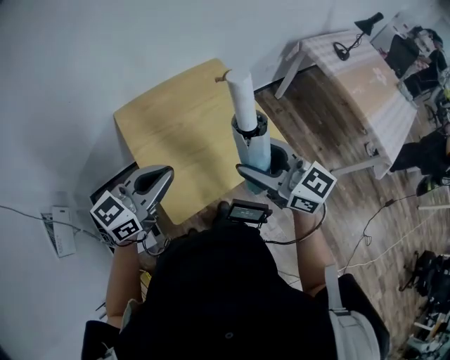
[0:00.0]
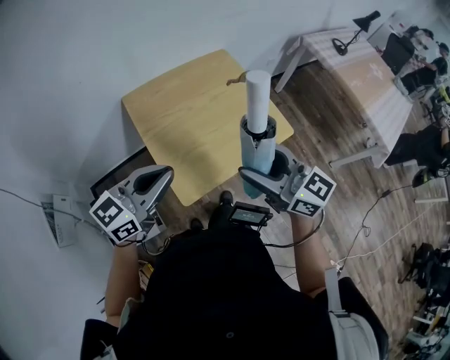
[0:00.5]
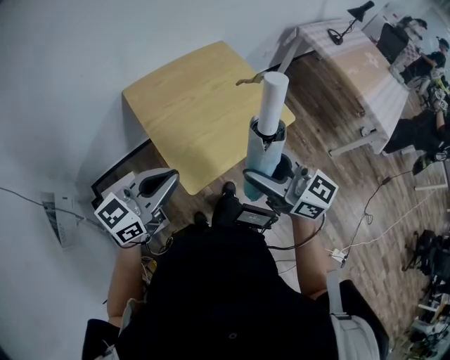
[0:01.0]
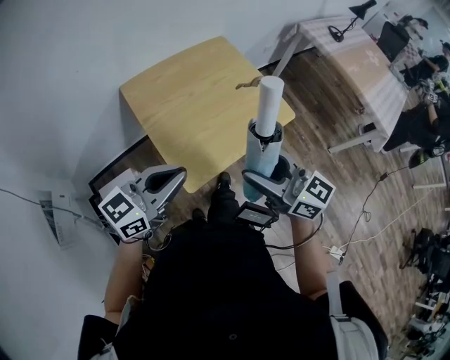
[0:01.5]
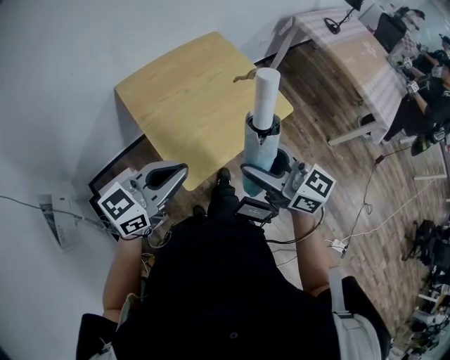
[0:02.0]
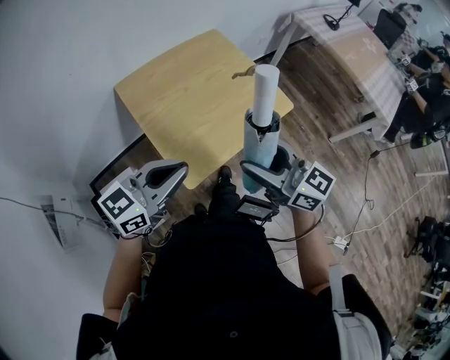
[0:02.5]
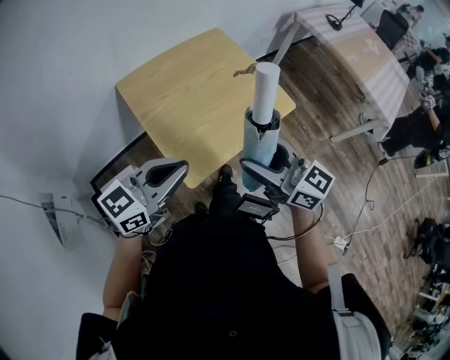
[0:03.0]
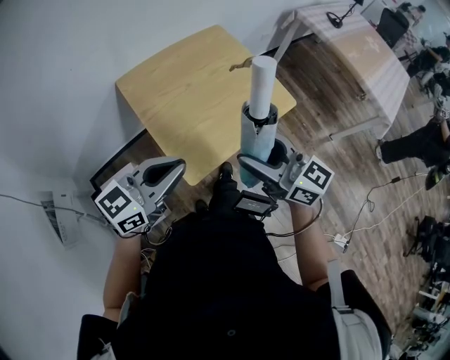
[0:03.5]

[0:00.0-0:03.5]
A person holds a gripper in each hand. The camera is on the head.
0:00.0 to 0:02.0: The right gripper goes some 15 cm backward and to the left. The left gripper moves backward, some 10 cm.
0:02.0 to 0:03.5: Both grippers stay about where they are.

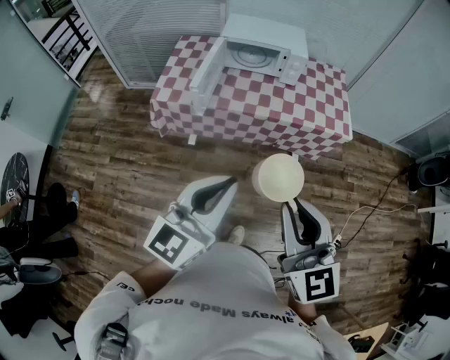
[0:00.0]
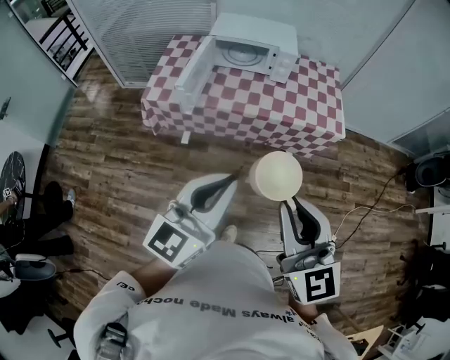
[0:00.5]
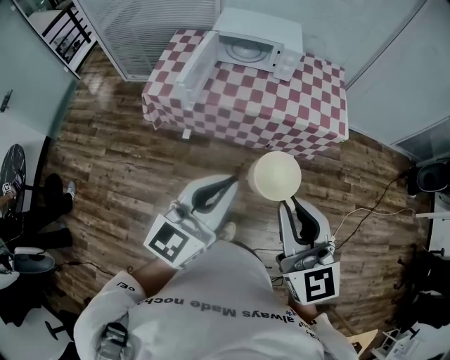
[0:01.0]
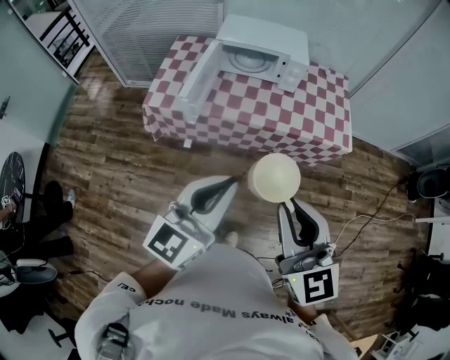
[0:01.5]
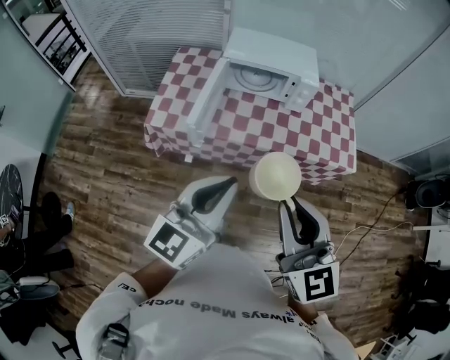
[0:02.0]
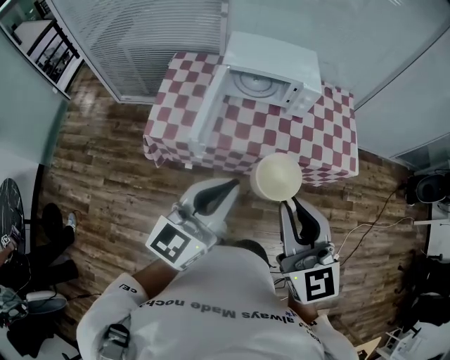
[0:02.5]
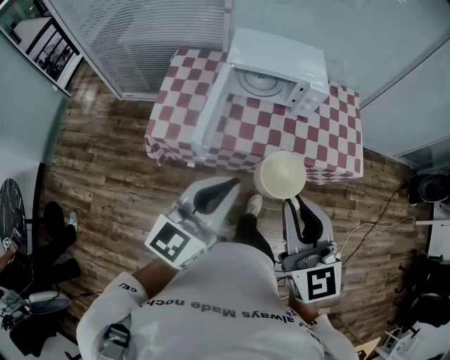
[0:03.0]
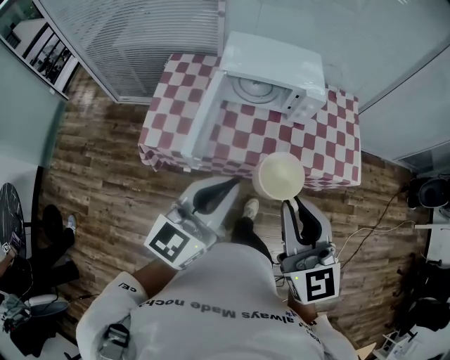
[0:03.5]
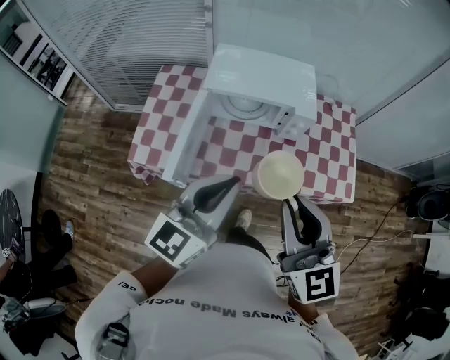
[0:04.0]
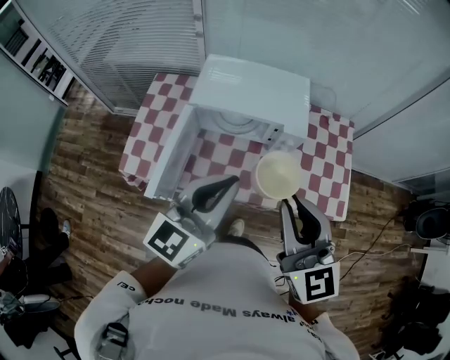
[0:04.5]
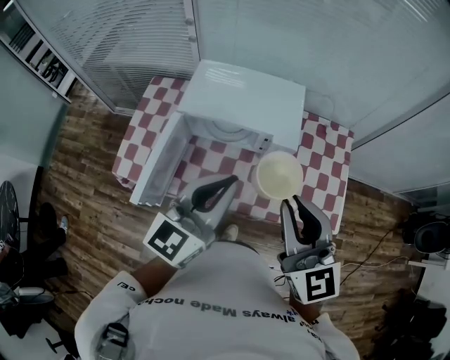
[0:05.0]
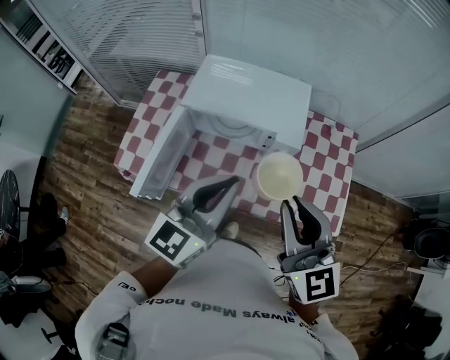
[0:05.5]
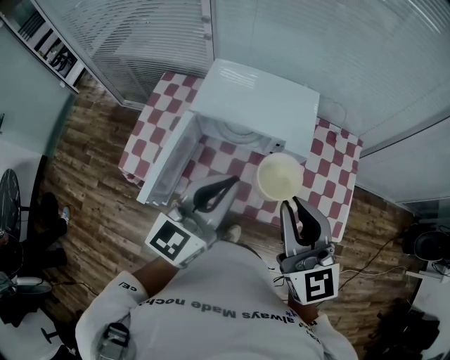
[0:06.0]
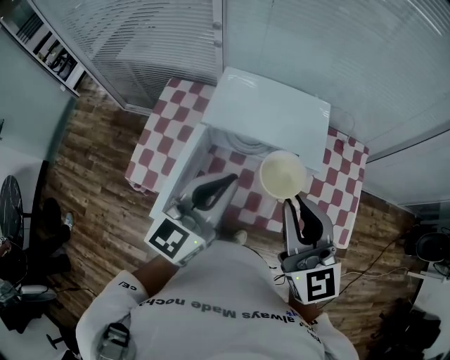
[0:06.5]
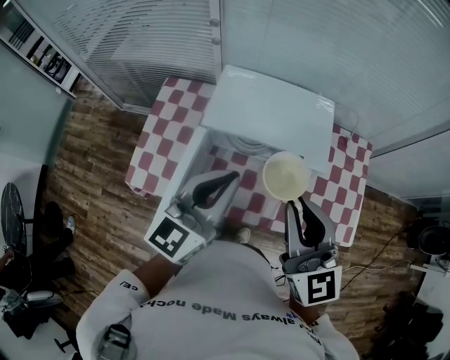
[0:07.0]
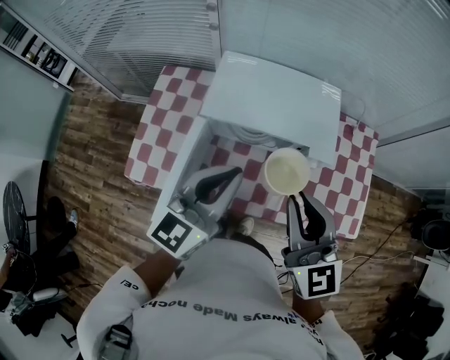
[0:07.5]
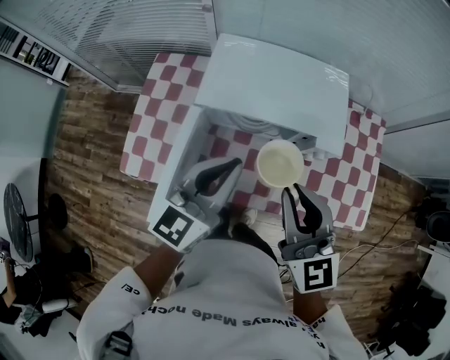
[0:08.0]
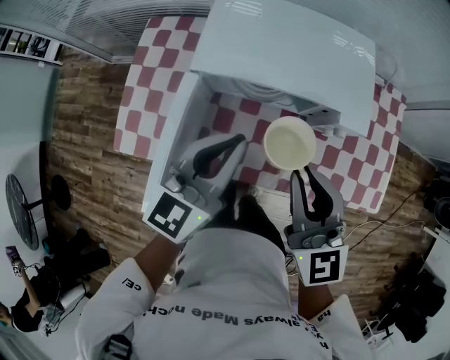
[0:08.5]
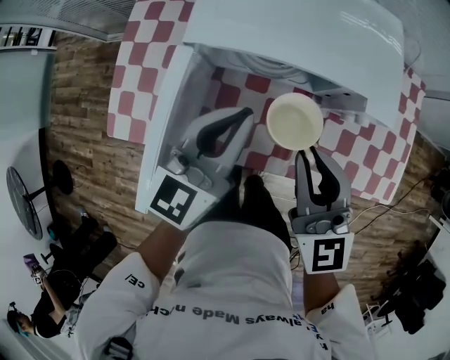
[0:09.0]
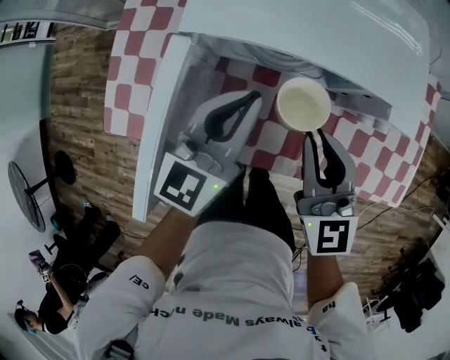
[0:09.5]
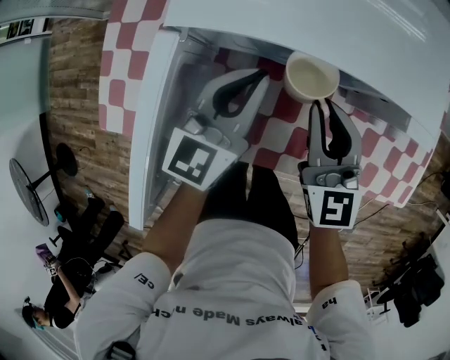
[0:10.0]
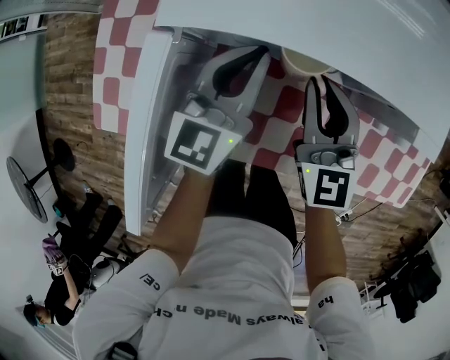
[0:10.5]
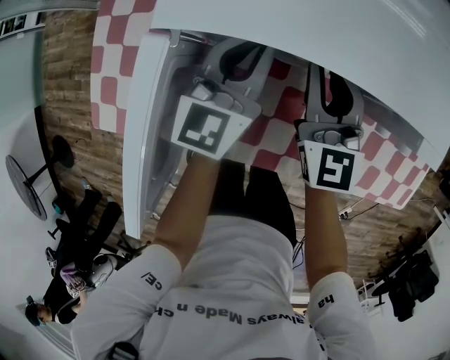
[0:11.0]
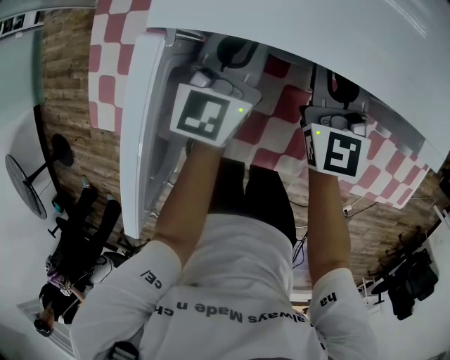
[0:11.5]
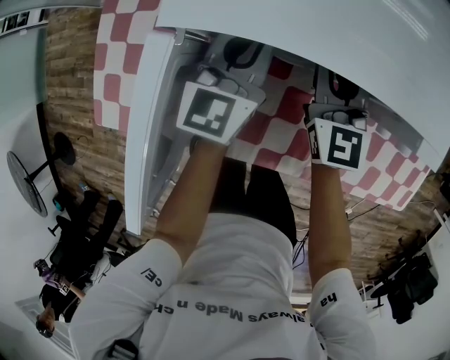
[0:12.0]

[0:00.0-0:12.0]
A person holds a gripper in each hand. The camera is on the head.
0:00.0 to 0:02.0: The grippers both shift forward by roughly 20 cm.
0:02.0 to 0:04.0: Both grippers move forward, roughly 25 cm.
0:04.0 to 0:06.0: Both grippers travel together forward and to the right, approximately 15 cm.
0:06.0 to 0:08.0: The right gripper goes about 15 cm downward, forward and to the left; the left gripper moves forward, downward and to the left, roughly 15 cm.
0:08.0 to 0:10.0: Both grippers move downward and forward, about 30 cm.
0:10.0 to 0:12.0: Both grippers travel together forward, roughly 10 cm.

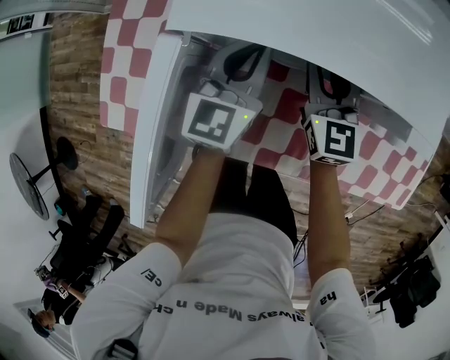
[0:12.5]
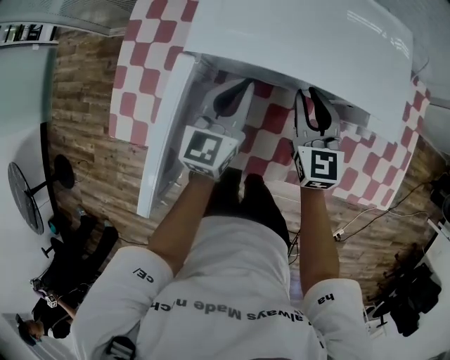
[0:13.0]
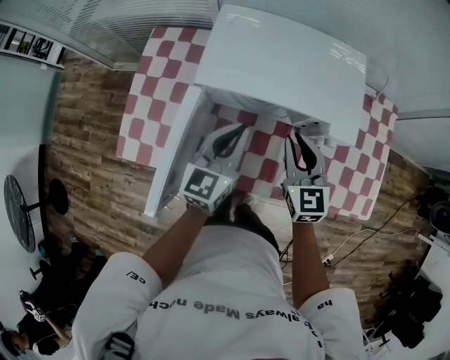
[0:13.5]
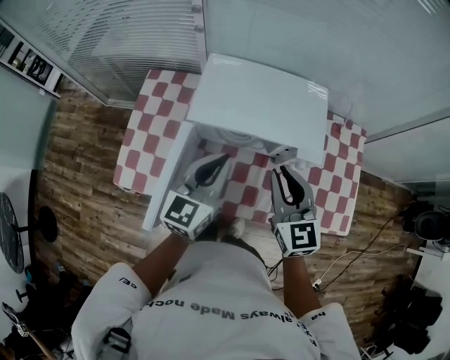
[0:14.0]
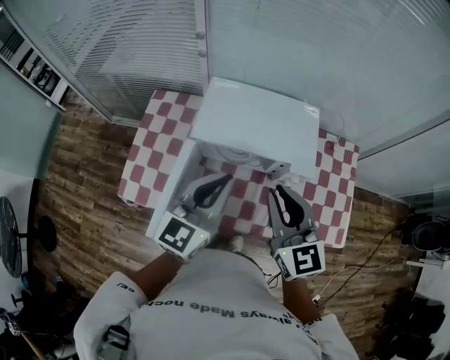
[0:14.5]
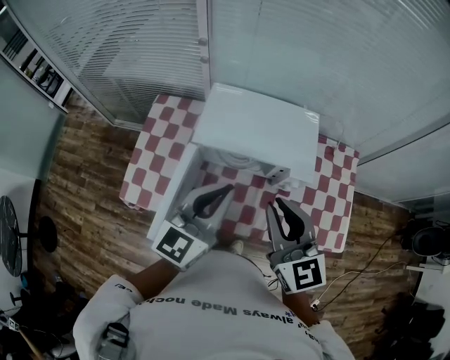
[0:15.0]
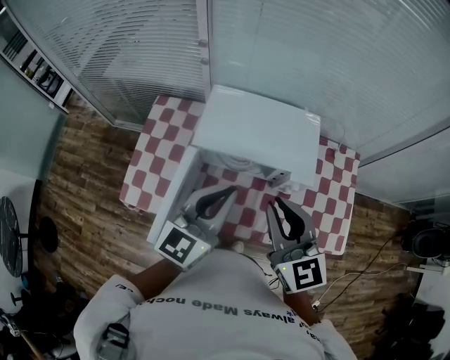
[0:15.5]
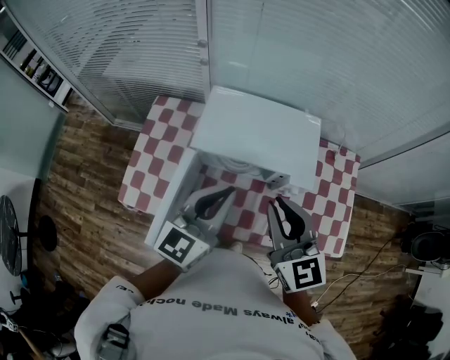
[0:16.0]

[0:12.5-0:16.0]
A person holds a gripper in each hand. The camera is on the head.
0:12.5 to 0:14.5: Both grippers move upward and backward, some 40 cm.
0:14.5 to 0:16.0: The grippers move only a little.

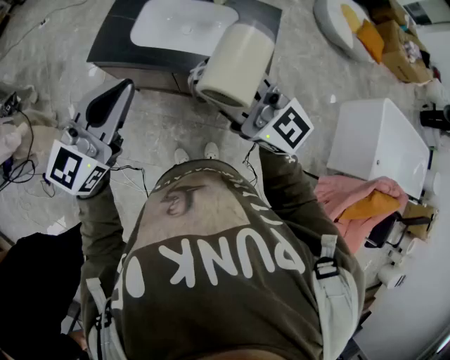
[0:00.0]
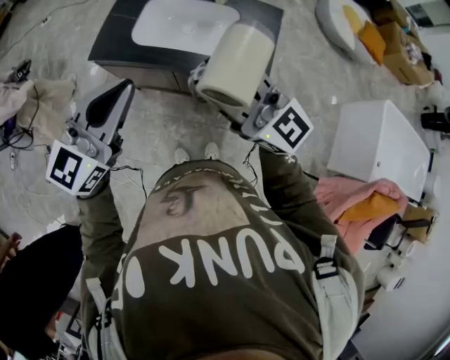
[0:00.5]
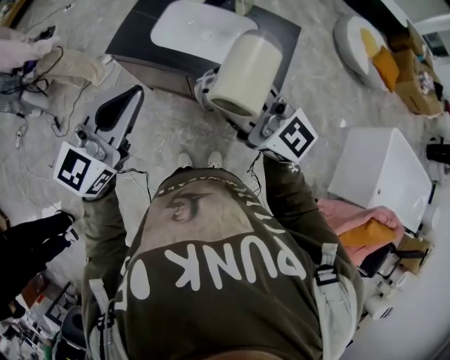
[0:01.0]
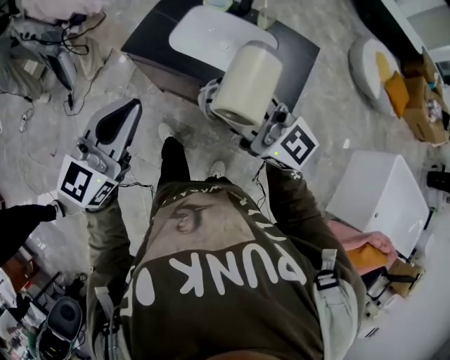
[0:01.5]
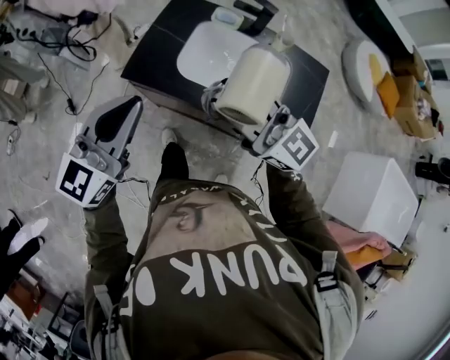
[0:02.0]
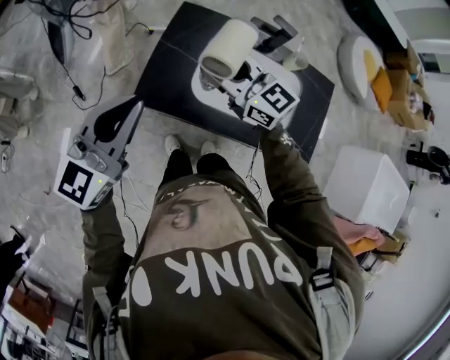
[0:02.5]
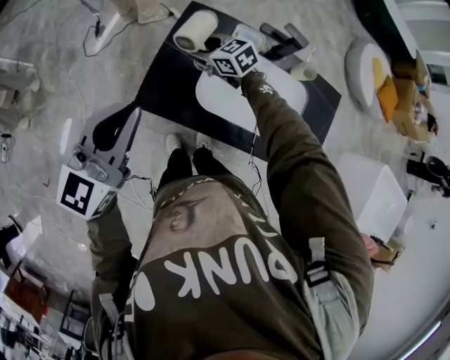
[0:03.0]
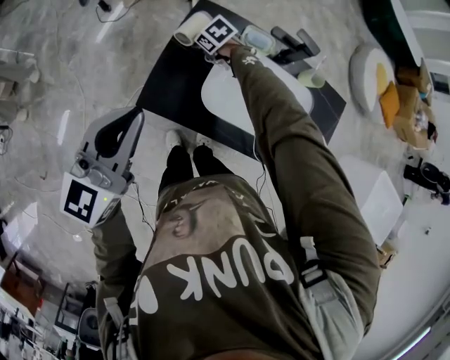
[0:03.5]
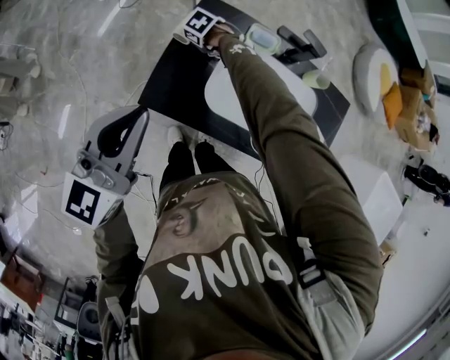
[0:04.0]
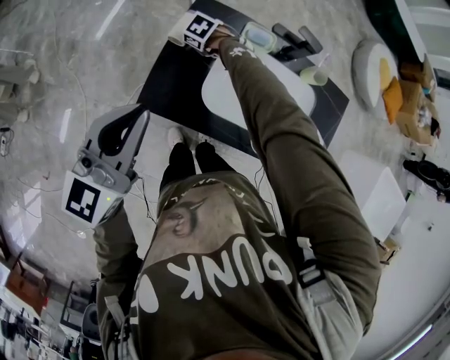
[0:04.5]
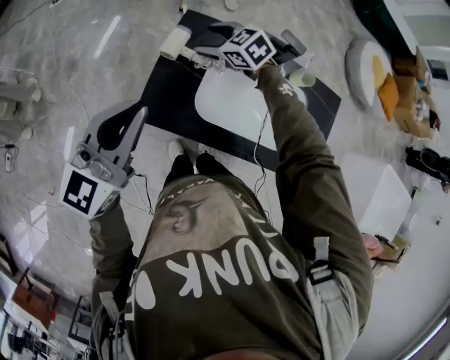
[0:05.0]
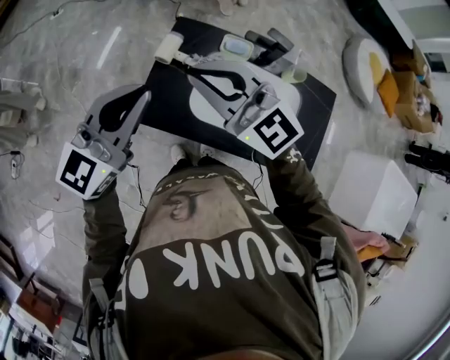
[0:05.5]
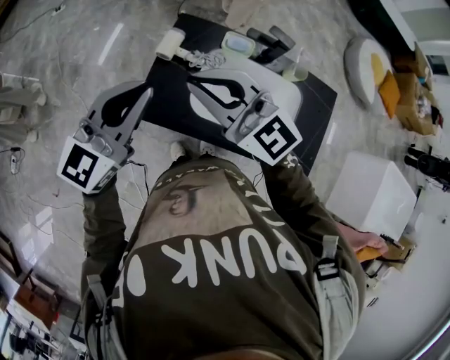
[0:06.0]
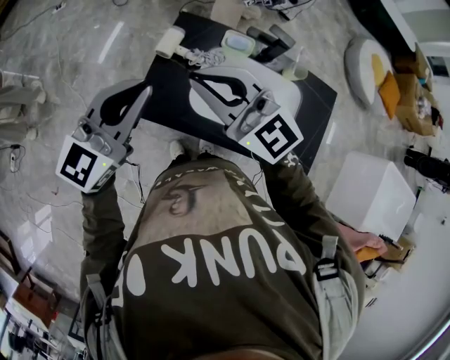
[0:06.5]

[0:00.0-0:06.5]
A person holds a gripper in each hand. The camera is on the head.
0:00.0 to 0:02.0: Both grippers travel together forward and to the left, roughly 25 cm.
0:02.0 to 0:04.5: The left gripper ends up some 20 cm from where it was; the right gripper moves about 60 cm, points its fingers about 80 degrees further downward, and opens.
0:04.5 to 0:06.5: The right gripper heads upward and backward, covering some 50 cm, tips its fingers upward by roughly 80 degrees, and closes its fingers, while the left gripper goes about 10 cm to the right and upward.

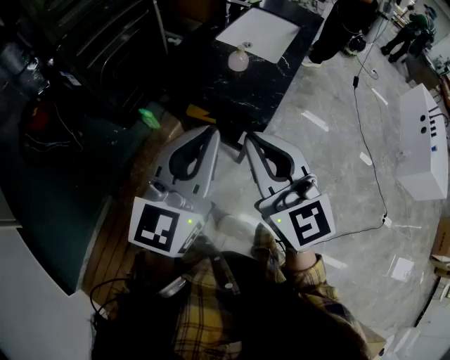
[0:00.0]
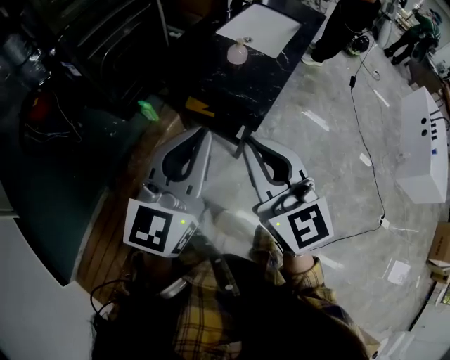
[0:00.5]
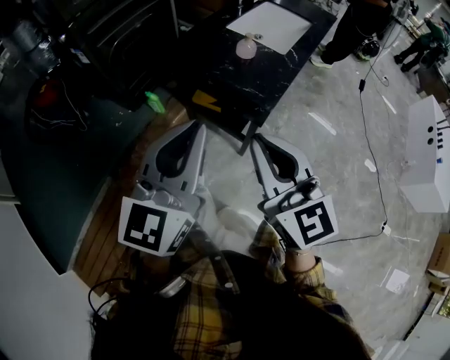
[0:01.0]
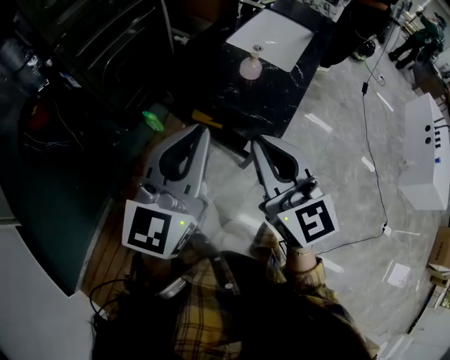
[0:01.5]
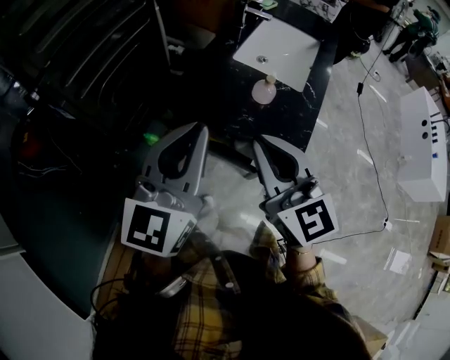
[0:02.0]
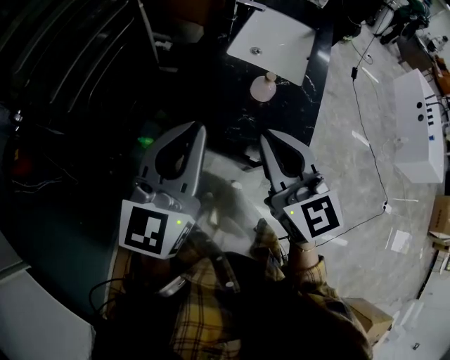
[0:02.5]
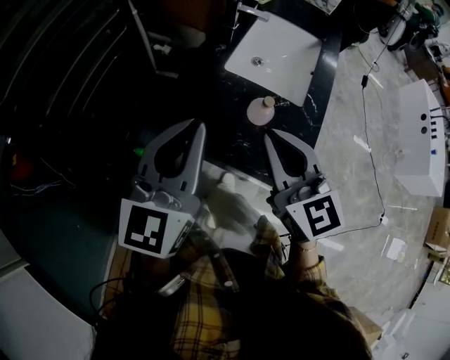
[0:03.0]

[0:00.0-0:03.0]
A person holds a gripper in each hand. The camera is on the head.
0:00.0 to 0:01.5: Both grippers travel together forward, approximately 5 cm.
0:01.5 to 0:03.0: The two grippers go about 25 cm forward.
